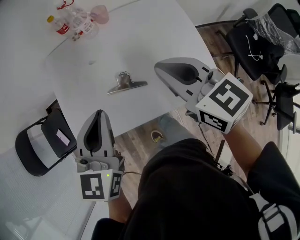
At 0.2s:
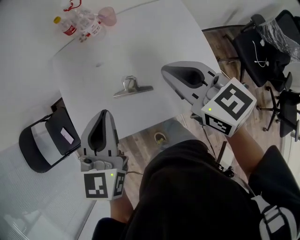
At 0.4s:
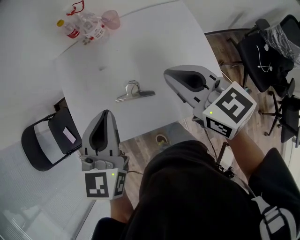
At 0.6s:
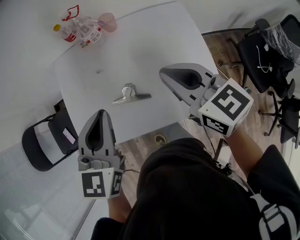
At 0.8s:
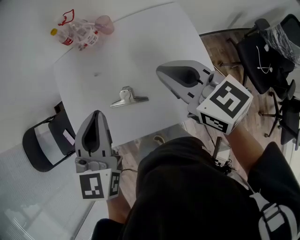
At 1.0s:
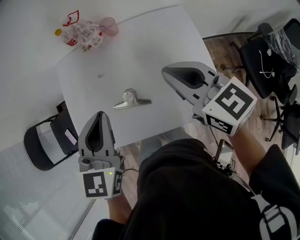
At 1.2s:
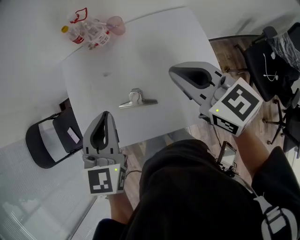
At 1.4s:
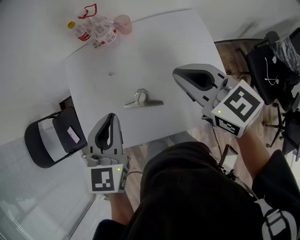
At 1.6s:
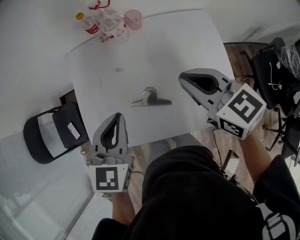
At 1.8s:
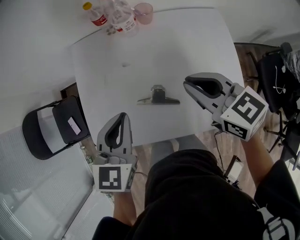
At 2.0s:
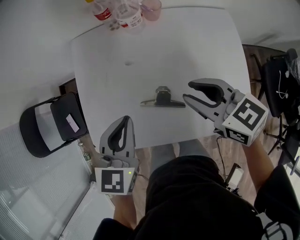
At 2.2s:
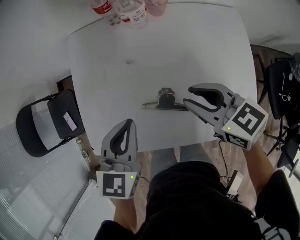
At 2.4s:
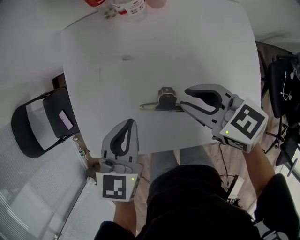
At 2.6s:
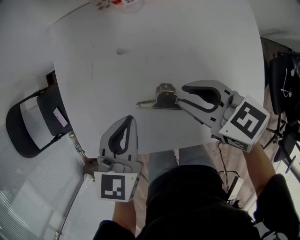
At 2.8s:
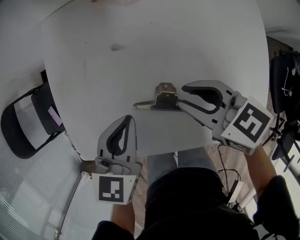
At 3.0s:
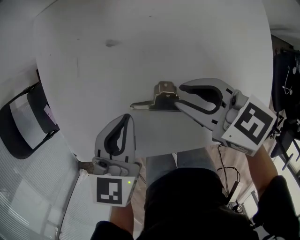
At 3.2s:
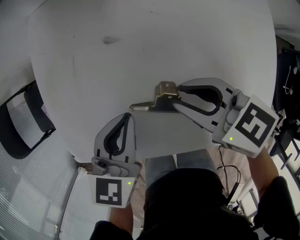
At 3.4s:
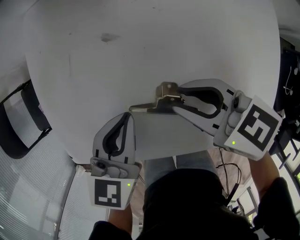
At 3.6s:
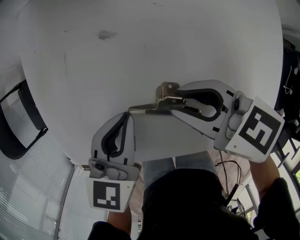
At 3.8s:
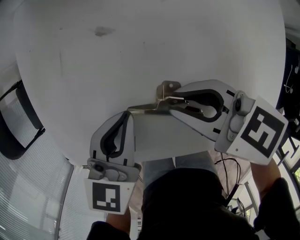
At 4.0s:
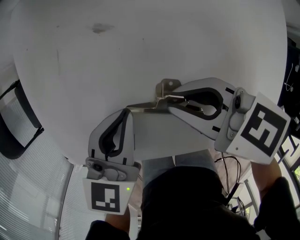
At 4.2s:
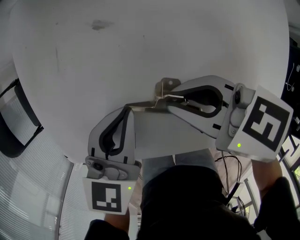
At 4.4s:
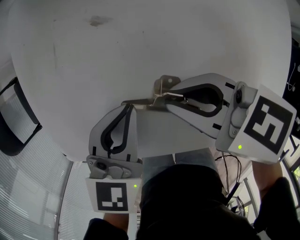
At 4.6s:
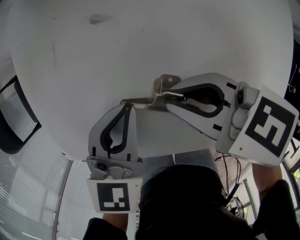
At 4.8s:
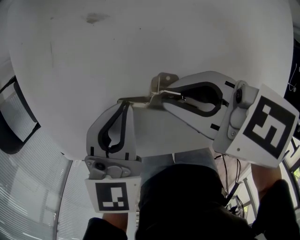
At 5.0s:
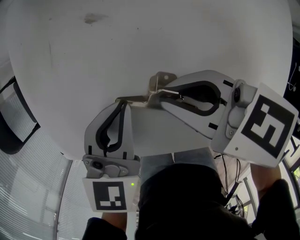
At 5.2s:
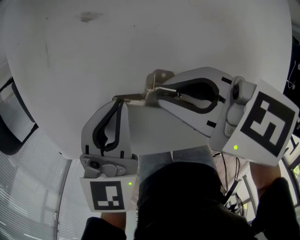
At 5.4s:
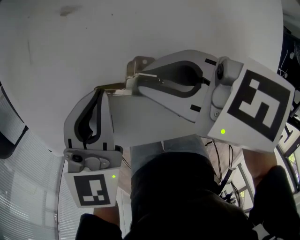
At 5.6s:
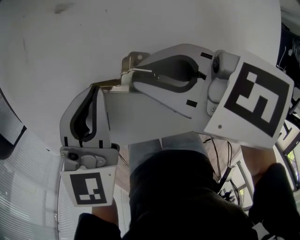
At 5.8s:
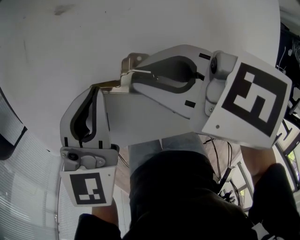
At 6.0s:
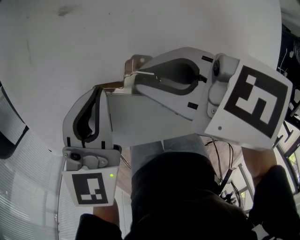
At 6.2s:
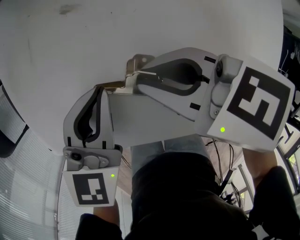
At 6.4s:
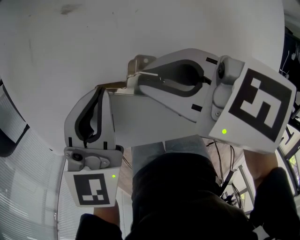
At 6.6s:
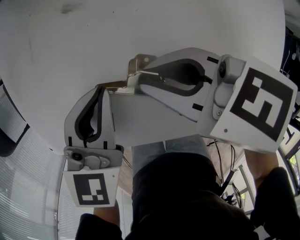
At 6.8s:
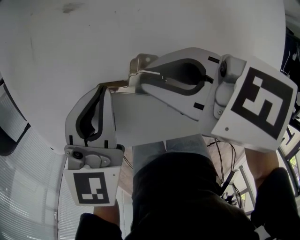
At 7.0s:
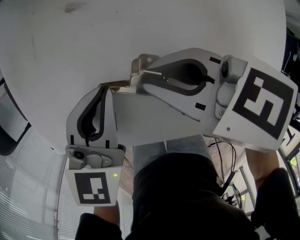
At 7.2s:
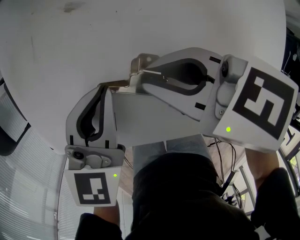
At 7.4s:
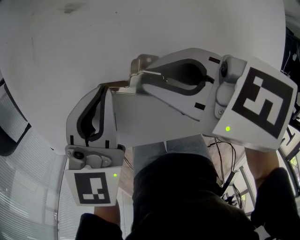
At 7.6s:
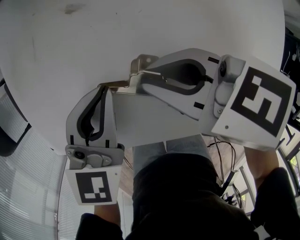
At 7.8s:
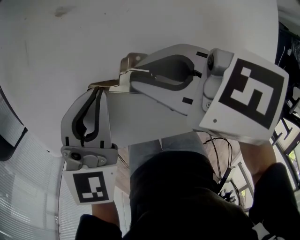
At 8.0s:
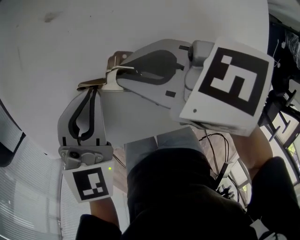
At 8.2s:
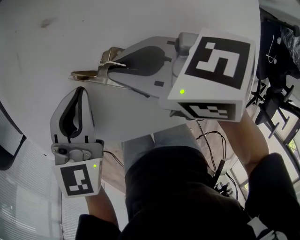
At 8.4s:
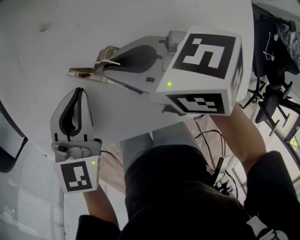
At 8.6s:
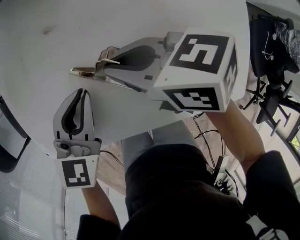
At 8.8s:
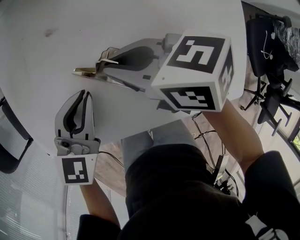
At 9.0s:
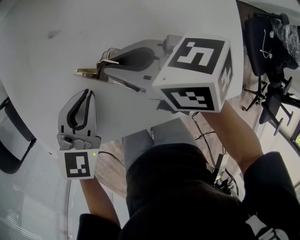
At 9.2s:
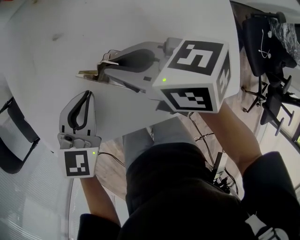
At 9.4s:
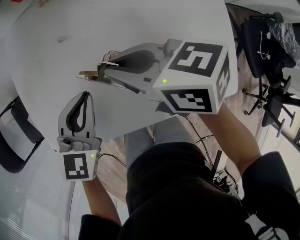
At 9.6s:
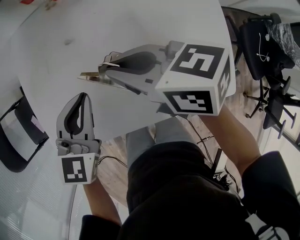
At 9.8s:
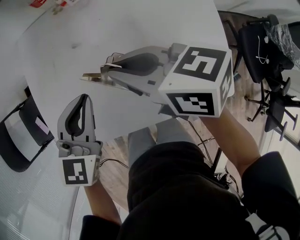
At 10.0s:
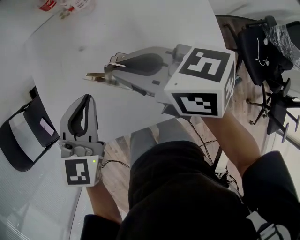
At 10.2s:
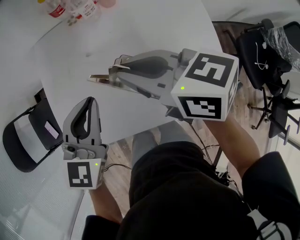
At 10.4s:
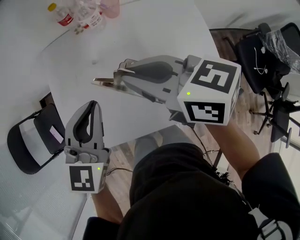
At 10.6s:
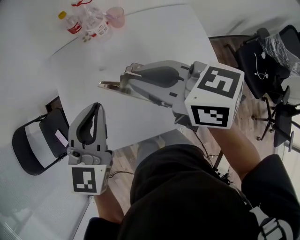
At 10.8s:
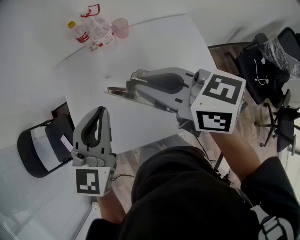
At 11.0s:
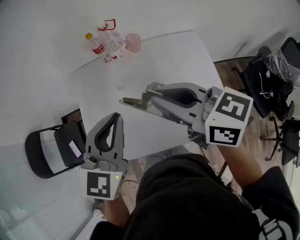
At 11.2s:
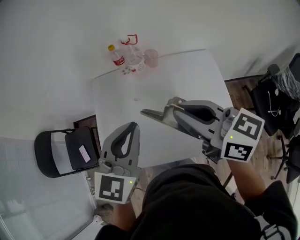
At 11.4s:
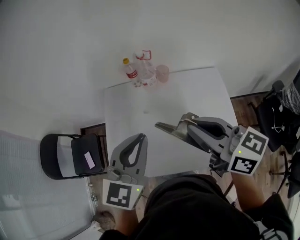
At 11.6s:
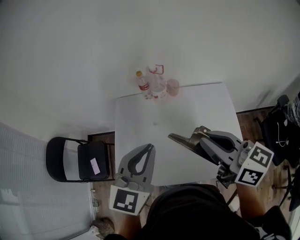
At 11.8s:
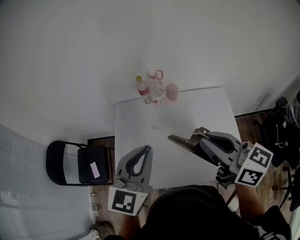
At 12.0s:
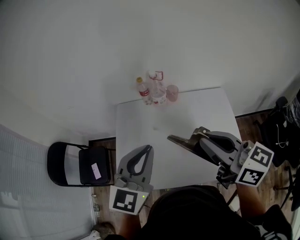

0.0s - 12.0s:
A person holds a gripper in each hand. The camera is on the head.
0.0s - 1.6s: The grippers both shift forward by some 5 cm.
1.6s - 3.0s: The left gripper shifts approximately 20 cm downward; the right gripper moves downward and to the left, about 20 cm, changes its angle by some 20 degrees, and opens up.
3.0s - 4.4s: The grippers move only a little.
4.4s - 7.6s: The two grippers keep their place.
7.6s - 9.0s: The grippers make only small movements.
9.0s - 10.4s: Both grippers move upward, roughly 20 cm.
10.4s - 12.0s: Both grippers travel together upward, about 15 cm.

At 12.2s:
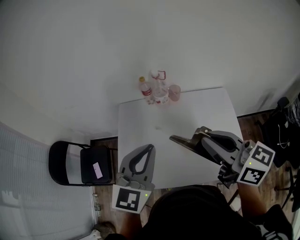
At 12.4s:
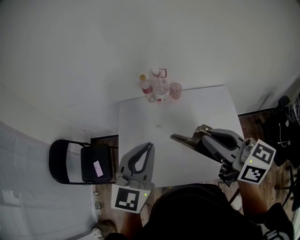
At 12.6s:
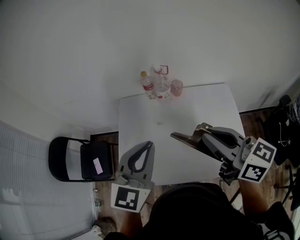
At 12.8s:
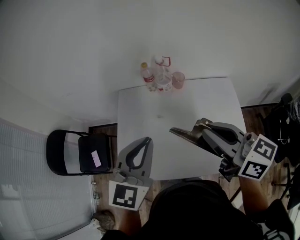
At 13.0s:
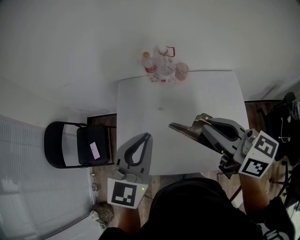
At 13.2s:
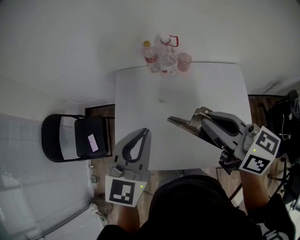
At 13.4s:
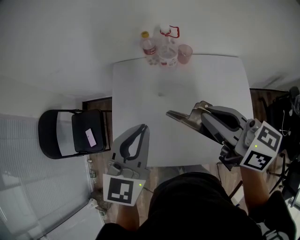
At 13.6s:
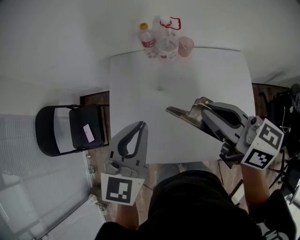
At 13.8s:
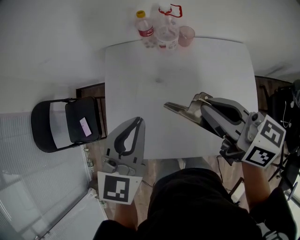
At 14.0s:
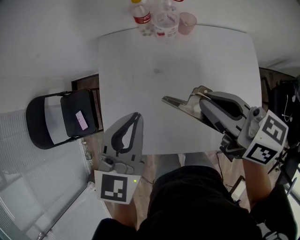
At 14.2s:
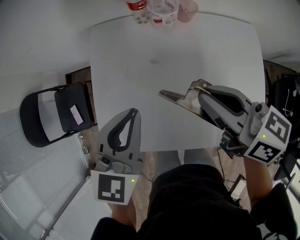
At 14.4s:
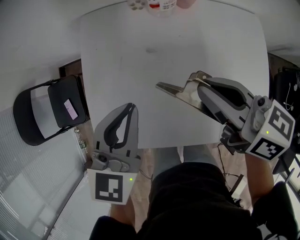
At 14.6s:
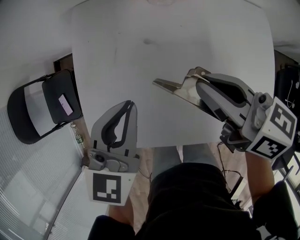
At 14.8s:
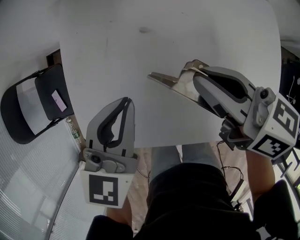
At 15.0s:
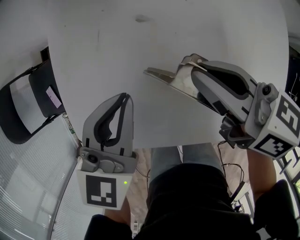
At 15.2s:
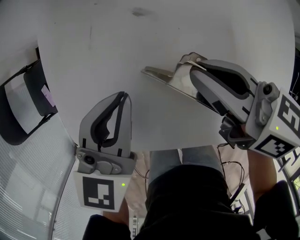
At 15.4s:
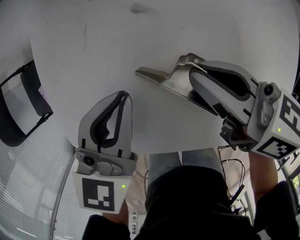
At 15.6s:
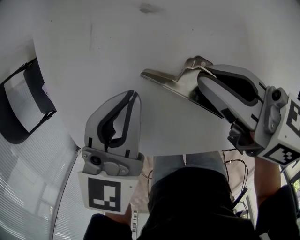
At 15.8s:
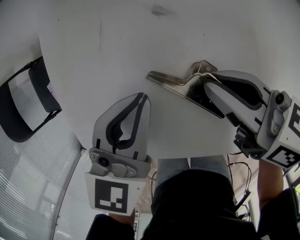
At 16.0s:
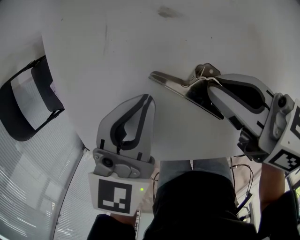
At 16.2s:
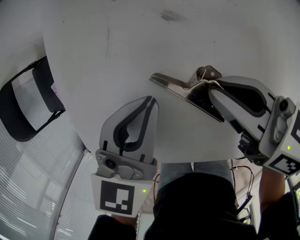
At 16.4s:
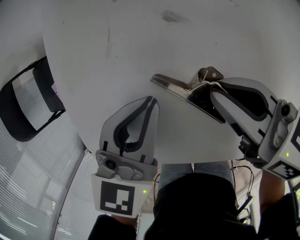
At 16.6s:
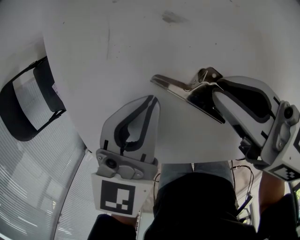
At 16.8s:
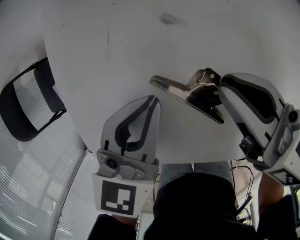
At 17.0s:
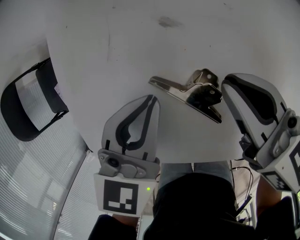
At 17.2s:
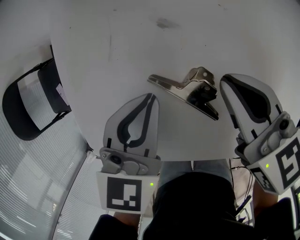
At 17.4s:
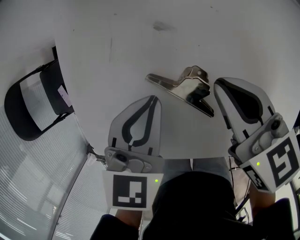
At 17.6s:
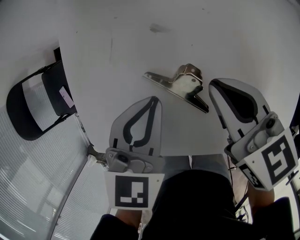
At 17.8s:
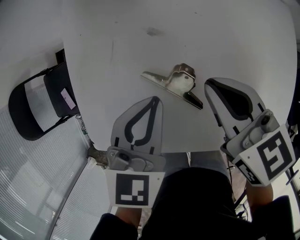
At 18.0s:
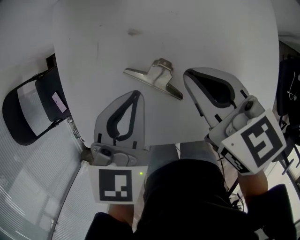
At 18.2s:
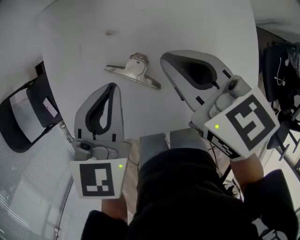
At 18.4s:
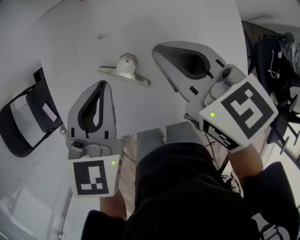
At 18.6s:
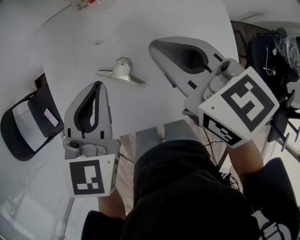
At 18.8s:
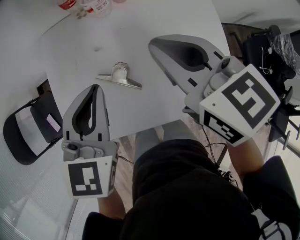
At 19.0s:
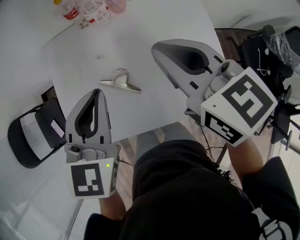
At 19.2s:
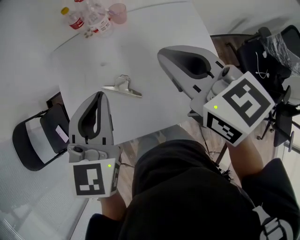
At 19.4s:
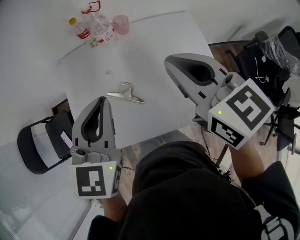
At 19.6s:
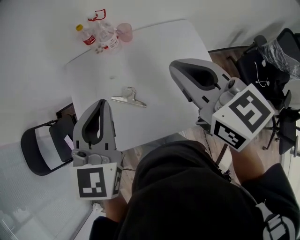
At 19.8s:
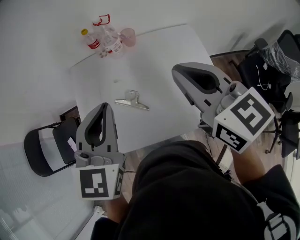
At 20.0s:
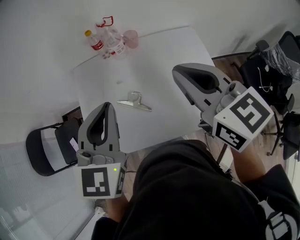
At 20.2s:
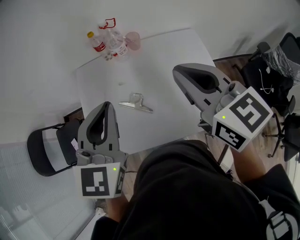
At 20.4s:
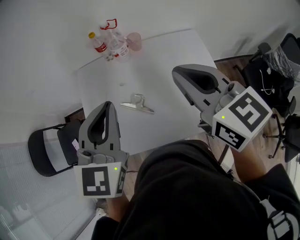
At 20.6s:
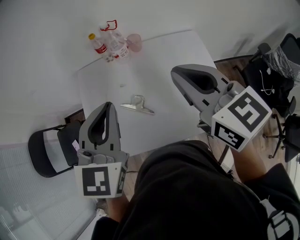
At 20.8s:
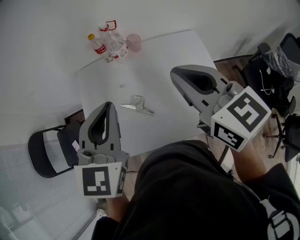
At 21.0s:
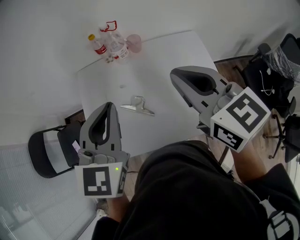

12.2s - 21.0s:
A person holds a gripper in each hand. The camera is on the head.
12.2s - 13.6s: The right gripper is displaced downward and forward by some 10 cm, while the left gripper is displaced downward by approximately 10 cm.
13.6s - 15.2s: The right gripper travels downward and backward by roughly 15 cm; the left gripper heads downward, backward and to the right, covering approximately 20 cm.
15.2s - 16.6s: The grippers make only small movements.
16.6s - 18.0s: The grippers both shift upward by roughly 10 cm.
18.0s - 19.6s: The left gripper moves upward, roughly 25 cm, and turns by about 20 degrees; the right gripper moves upward and to the right, some 25 cm, and swivels approximately 20 degrees.
19.6s - 21.0s: The grippers move only a little.

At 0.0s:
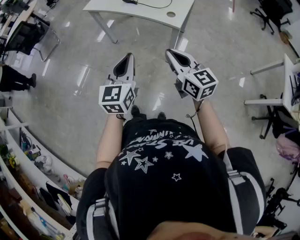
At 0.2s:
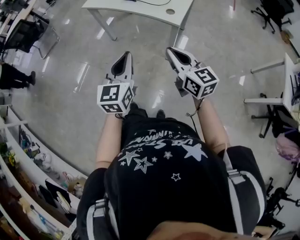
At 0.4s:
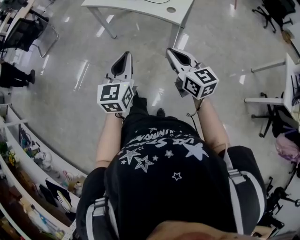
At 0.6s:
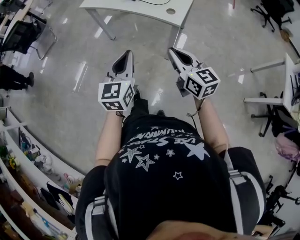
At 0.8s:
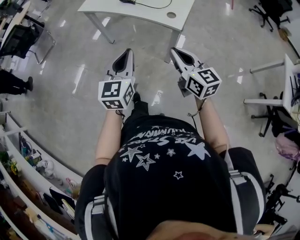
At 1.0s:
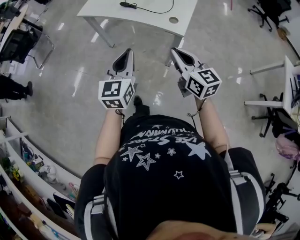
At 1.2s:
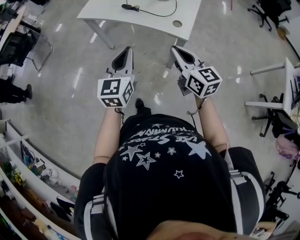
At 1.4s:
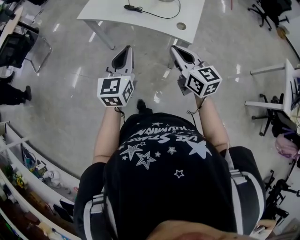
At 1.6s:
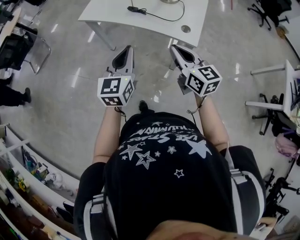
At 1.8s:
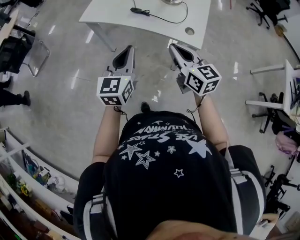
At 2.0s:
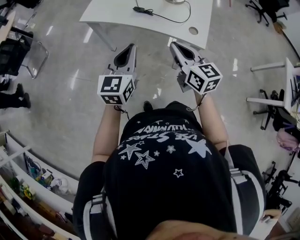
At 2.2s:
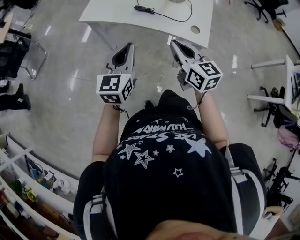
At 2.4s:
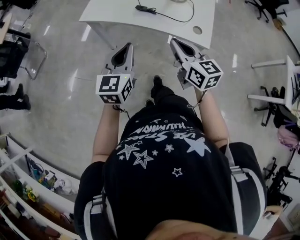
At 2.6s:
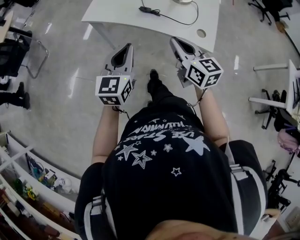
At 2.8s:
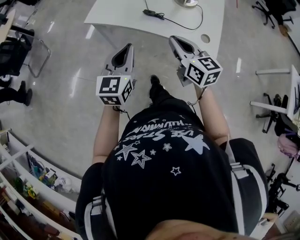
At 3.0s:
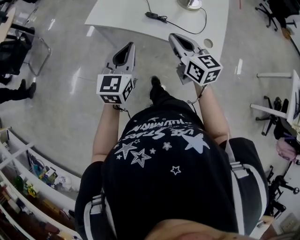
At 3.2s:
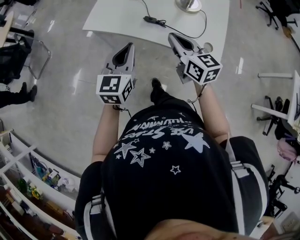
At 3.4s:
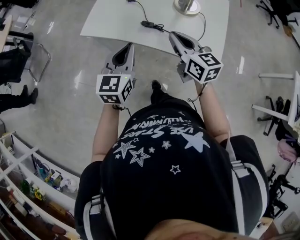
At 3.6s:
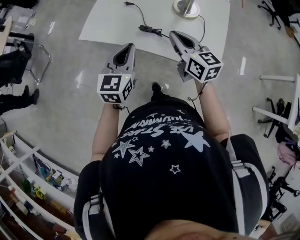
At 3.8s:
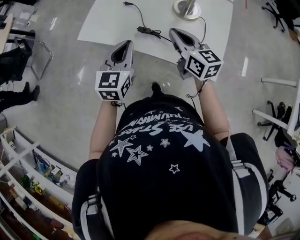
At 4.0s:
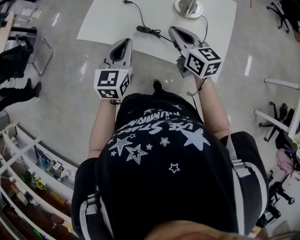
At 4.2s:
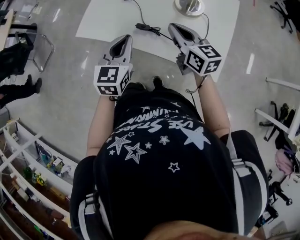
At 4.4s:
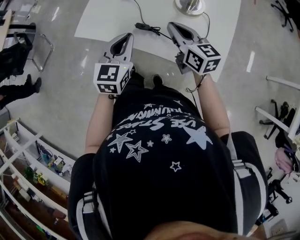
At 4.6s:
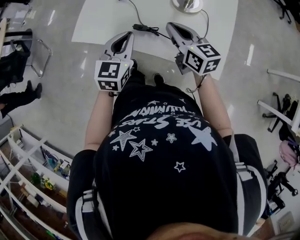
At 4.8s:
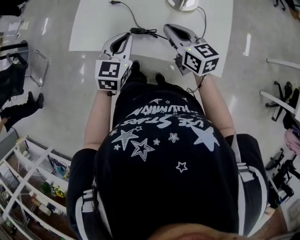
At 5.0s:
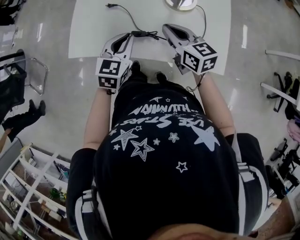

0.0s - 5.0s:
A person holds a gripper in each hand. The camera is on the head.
0.0s - 1.6s: The two grippers go about 20 cm forward.
1.6s - 3.4s: The two grippers go about 20 cm forward.
3.4s - 5.0s: The grippers both shift forward and downward by about 15 cm. The left gripper swivels approximately 30 degrees.
